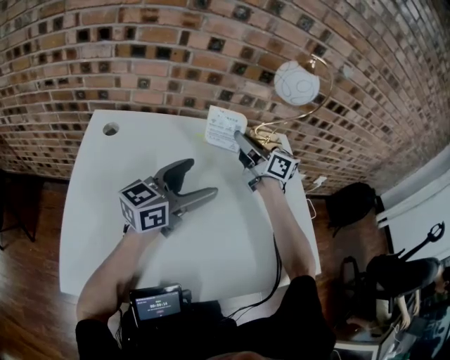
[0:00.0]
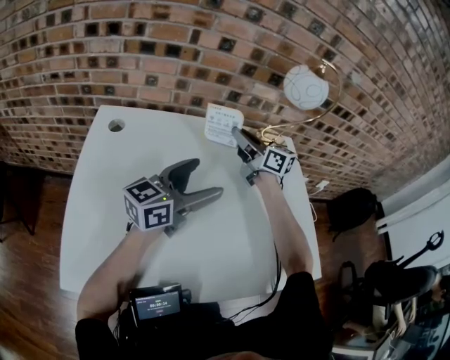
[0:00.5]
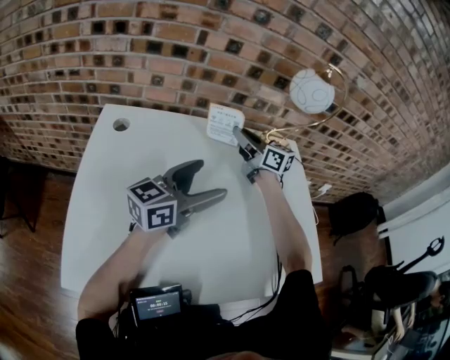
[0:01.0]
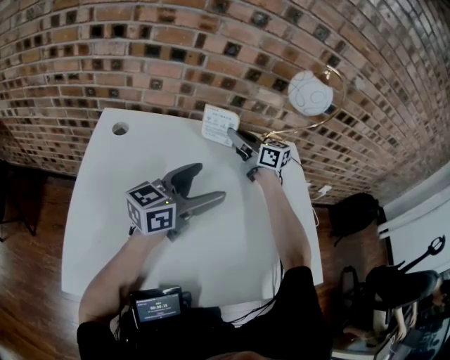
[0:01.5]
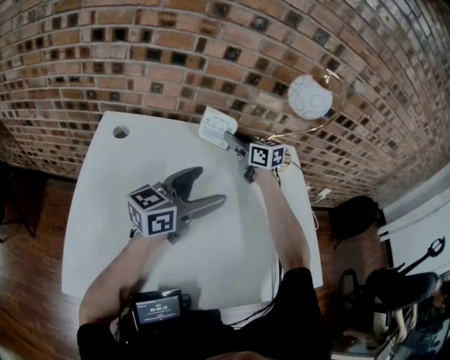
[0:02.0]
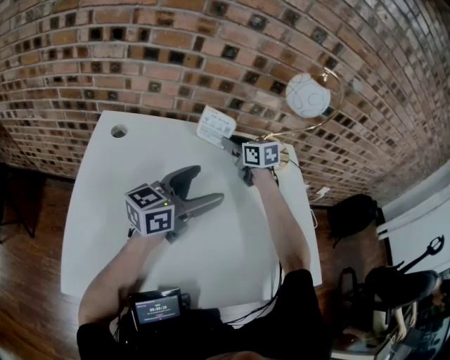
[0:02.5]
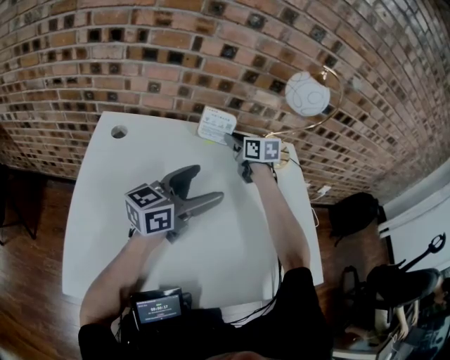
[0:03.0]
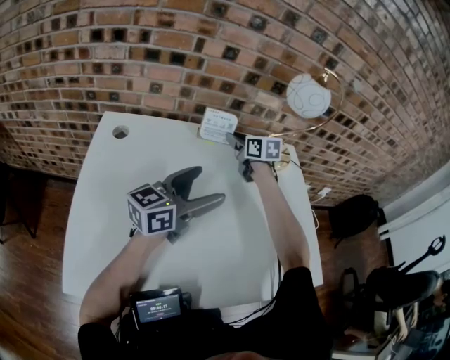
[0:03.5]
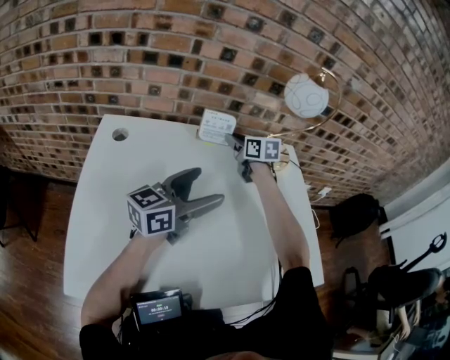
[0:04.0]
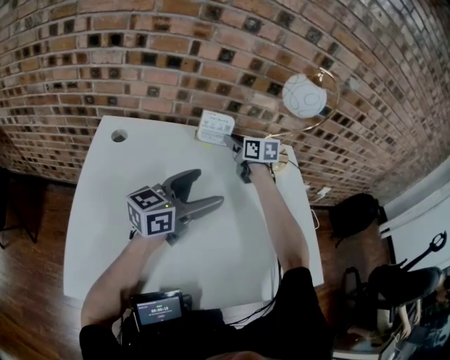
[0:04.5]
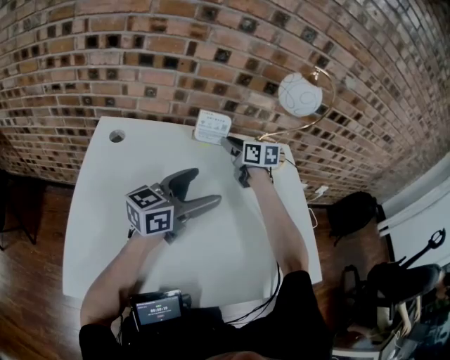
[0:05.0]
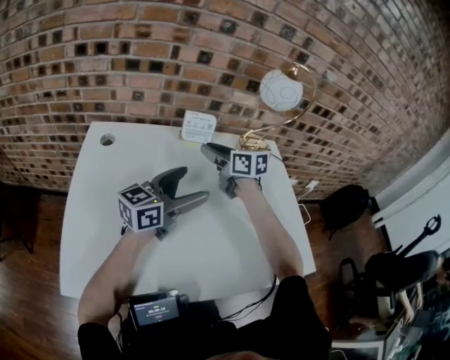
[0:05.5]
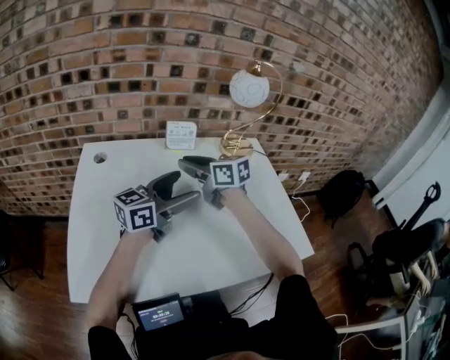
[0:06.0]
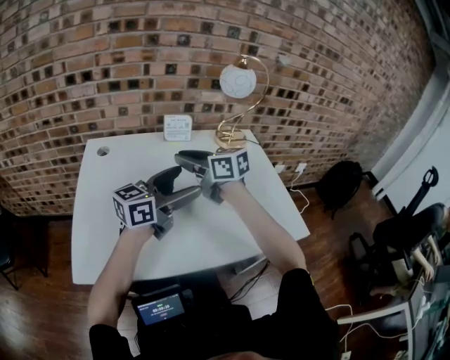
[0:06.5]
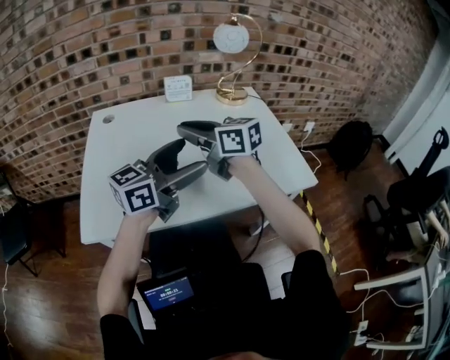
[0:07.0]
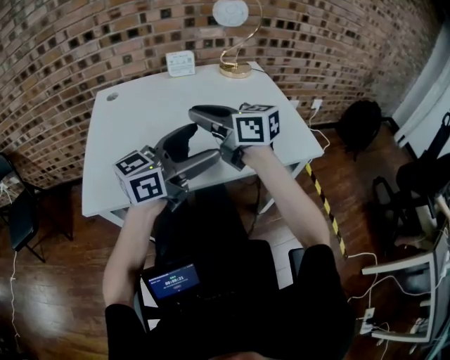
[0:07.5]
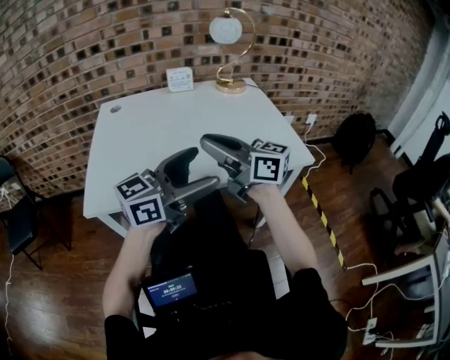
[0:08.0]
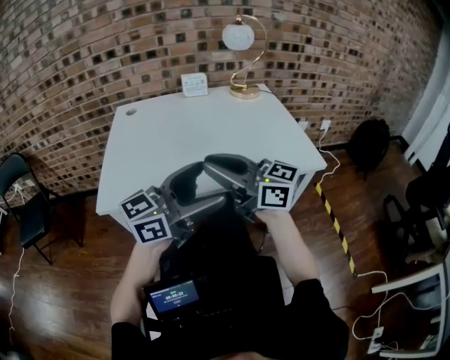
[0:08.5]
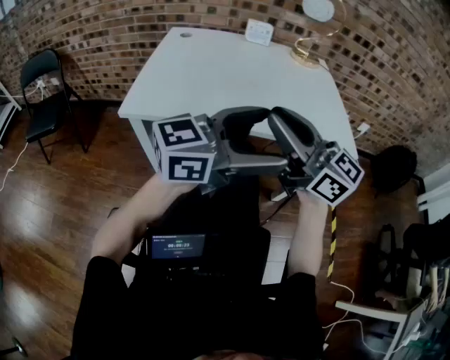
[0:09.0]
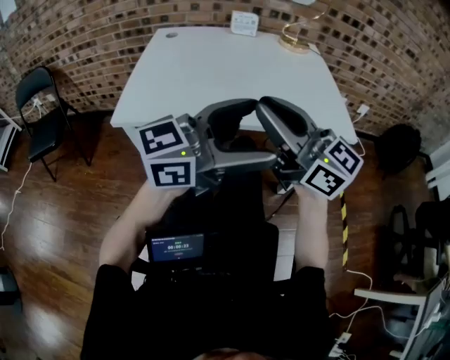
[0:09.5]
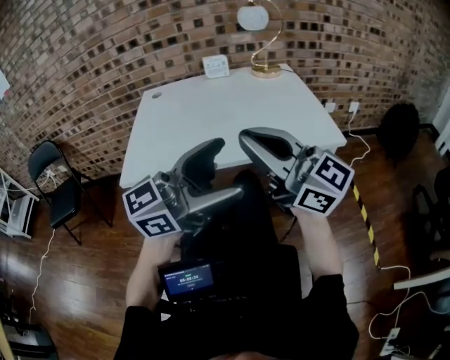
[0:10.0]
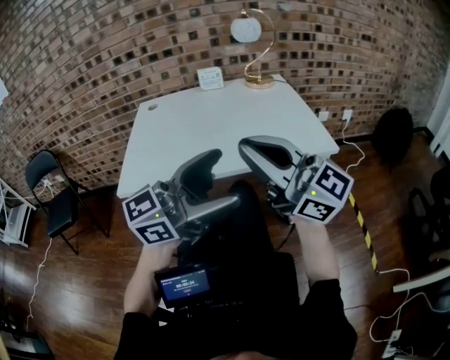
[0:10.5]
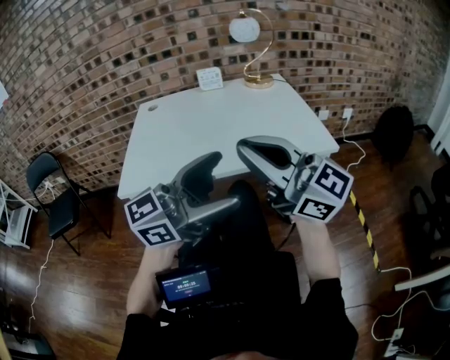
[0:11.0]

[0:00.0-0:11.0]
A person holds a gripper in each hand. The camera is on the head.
0:00.0 to 0:02.0: The right gripper is displaced forward, downward and to the left by some 10 cm, and rotates some 20 degrees.
0:02.0 to 0:03.5: There are only small adjustments of the grippers.
0:03.5 to 0:05.5: The right gripper is displaced backward by approximately 10 cm.
0:05.5 to 0:07.5: The grippers both shift backward by about 30 cm.
0:07.5 to 0:09.0: The left gripper ends up approximately 15 cm from where it was. The right gripper moves roughly 20 cm, and rotates roughly 20 degrees.
0:09.0 to 0:11.0: The right gripper ends up roughly 10 cm from where it was.

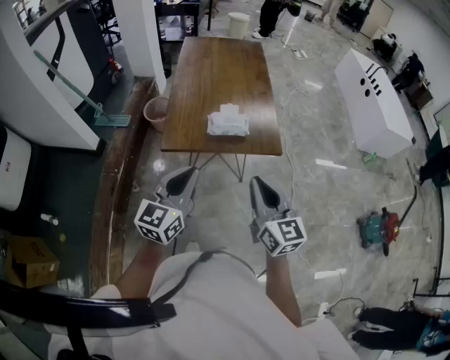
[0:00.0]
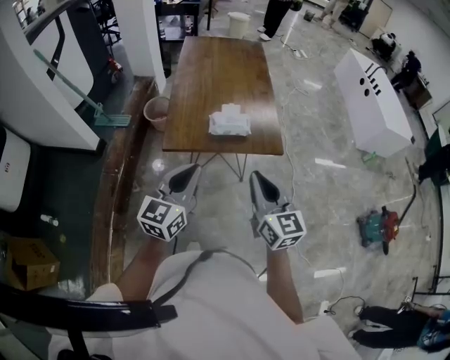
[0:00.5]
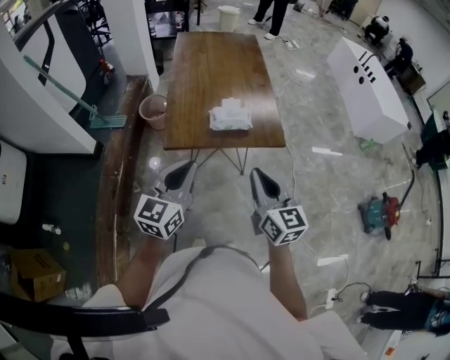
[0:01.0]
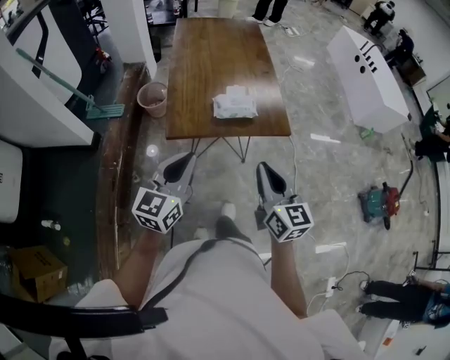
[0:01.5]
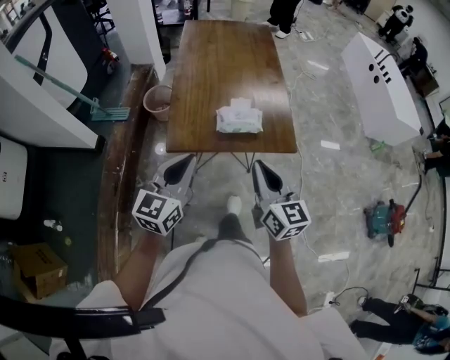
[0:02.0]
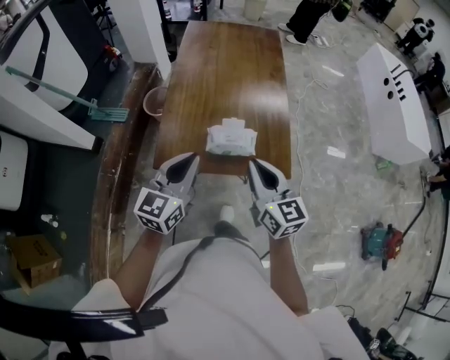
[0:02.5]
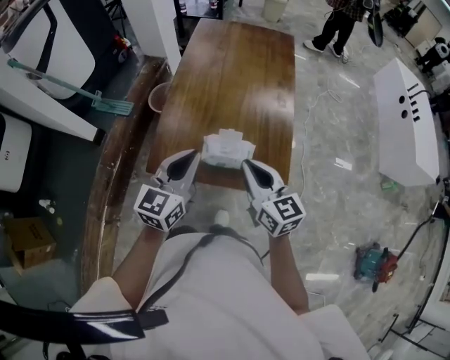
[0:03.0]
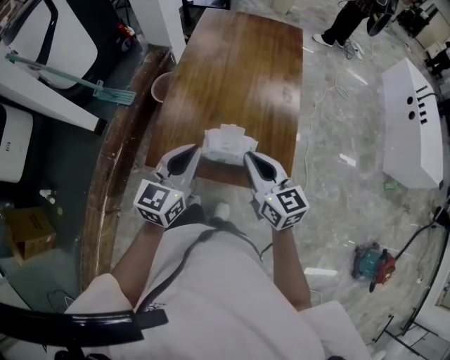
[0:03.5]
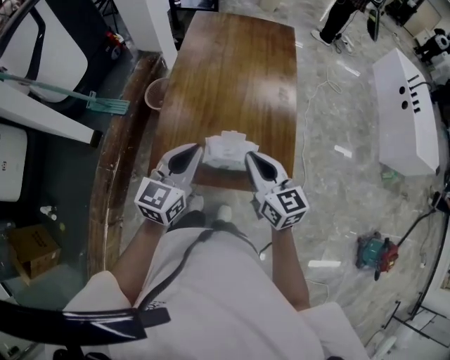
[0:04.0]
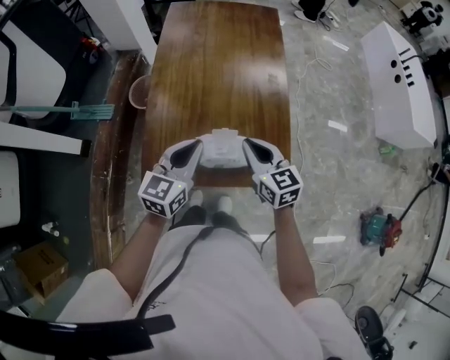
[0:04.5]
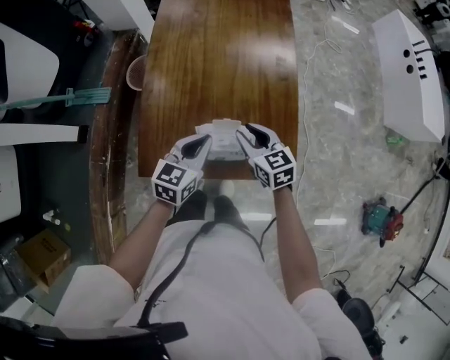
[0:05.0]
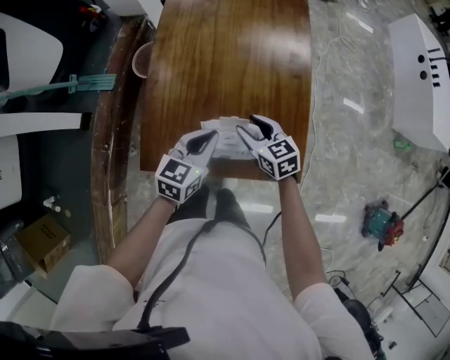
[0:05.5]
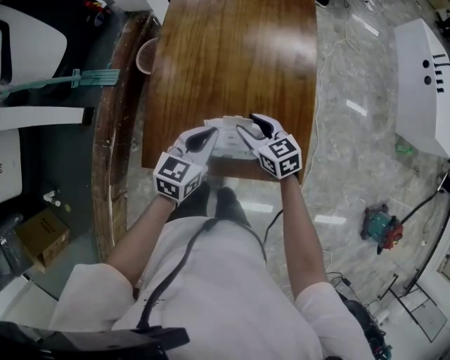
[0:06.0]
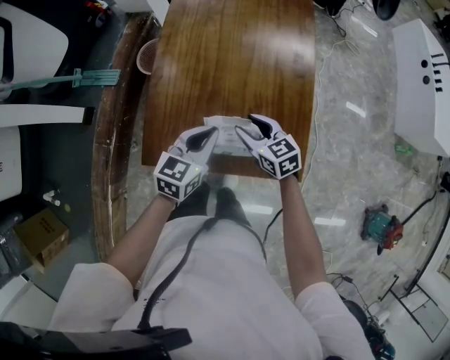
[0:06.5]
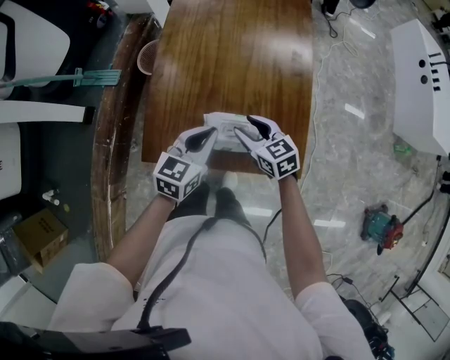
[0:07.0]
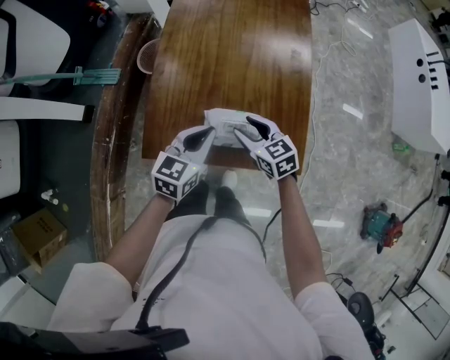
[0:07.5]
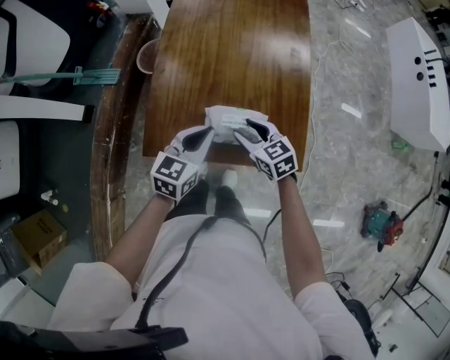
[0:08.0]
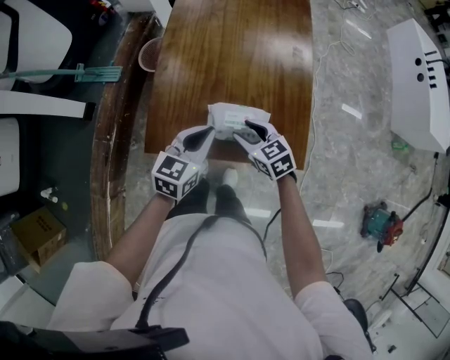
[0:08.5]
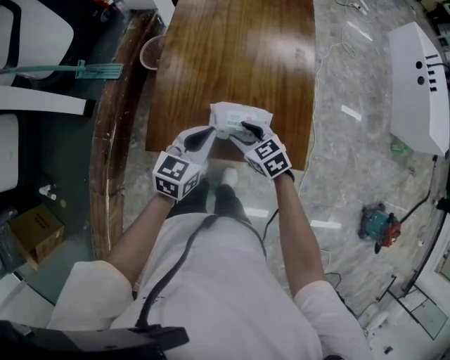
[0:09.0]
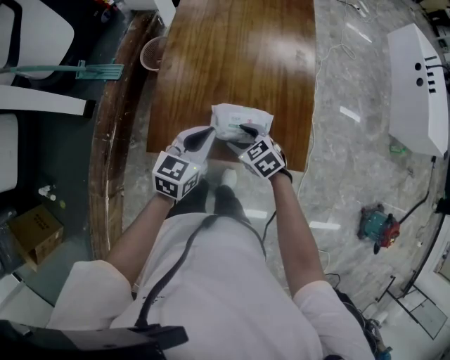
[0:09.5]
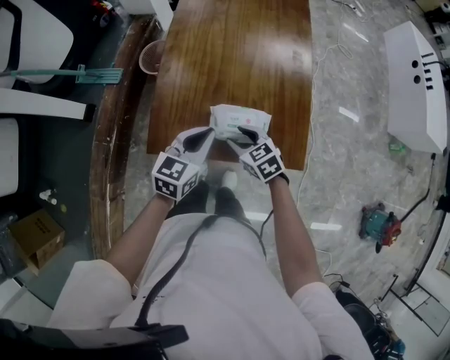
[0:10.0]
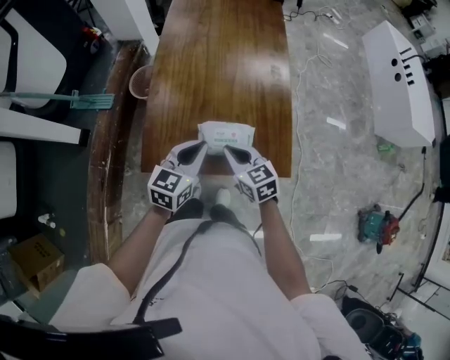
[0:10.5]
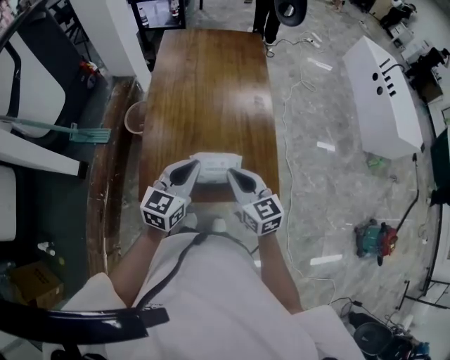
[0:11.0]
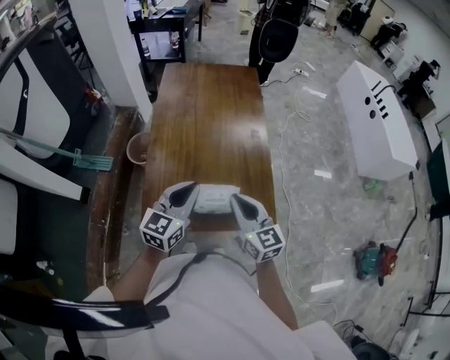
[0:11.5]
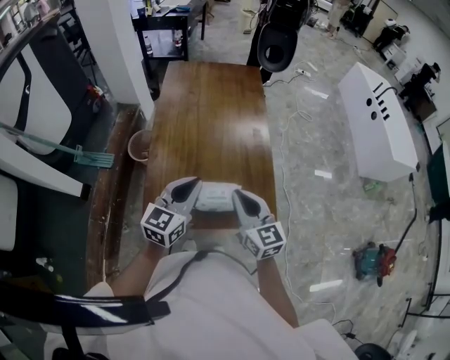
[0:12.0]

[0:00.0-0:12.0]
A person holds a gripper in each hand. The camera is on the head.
0:00.0 to 0:02.0: The grippers both shift forward and to the left by roughly 10 cm.
0:02.0 to 0:04.0: The left gripper moves forward and to the right, about 25 cm. The right gripper is displaced forward by about 25 cm.
0:04.0 to 0:06.0: Both grippers travel together downward and forward, some 20 cm. The right gripper swivels some 20 degrees, and opens its fingers.
0:06.0 to 0:08.0: Both grippers travel together backward, approximately 5 cm.
0:08.0 to 0:10.0: The right gripper changes place by about 5 cm.
0:10.0 to 0:12.0: The right gripper goes approximately 25 cm upward, tips its fingers upward by some 30 degrees, and closes its fingers; the left gripper is displaced upward by roughly 15 cm.

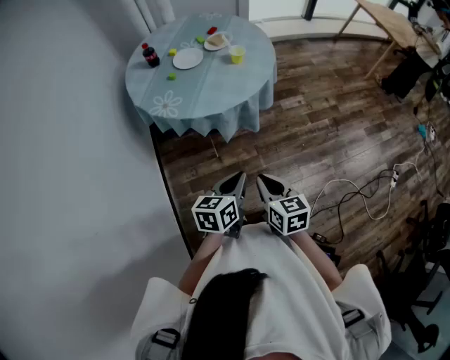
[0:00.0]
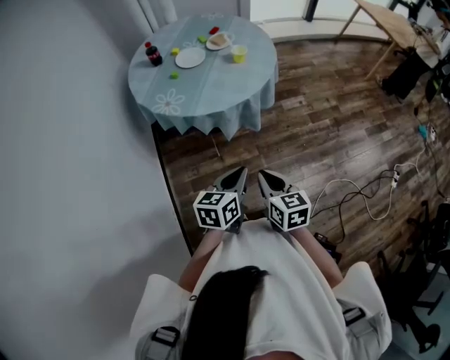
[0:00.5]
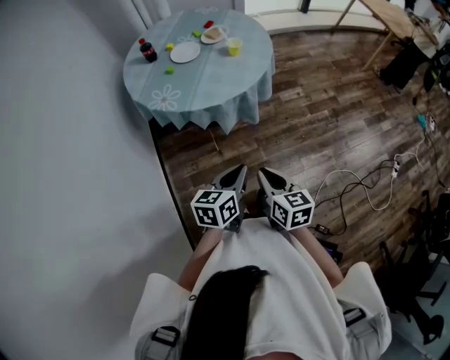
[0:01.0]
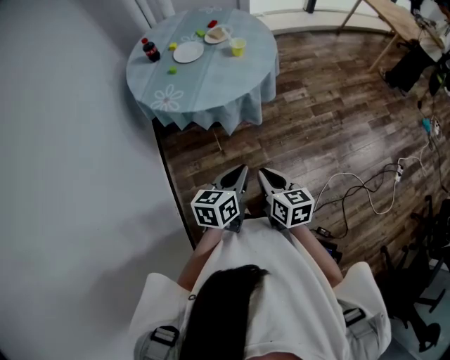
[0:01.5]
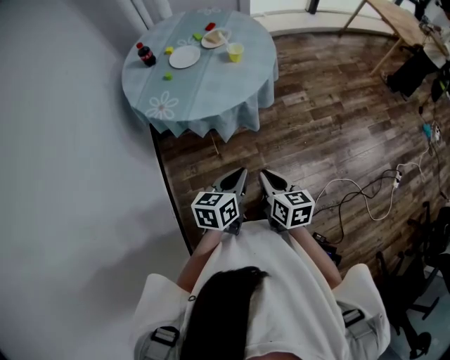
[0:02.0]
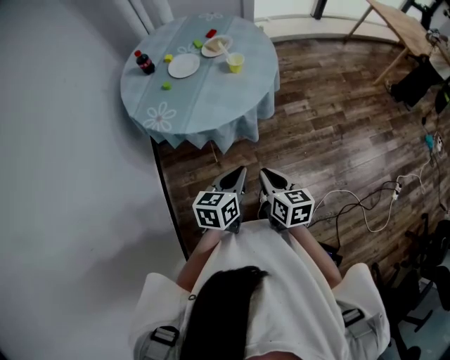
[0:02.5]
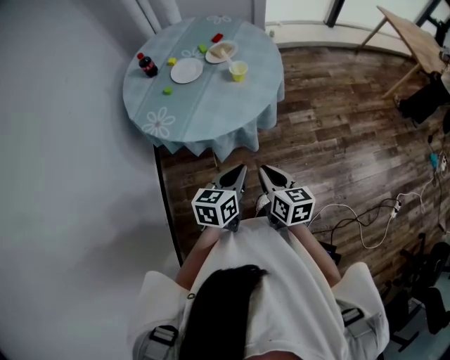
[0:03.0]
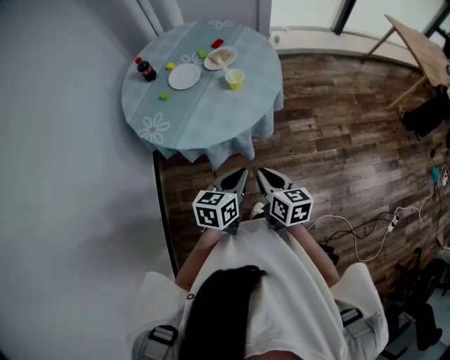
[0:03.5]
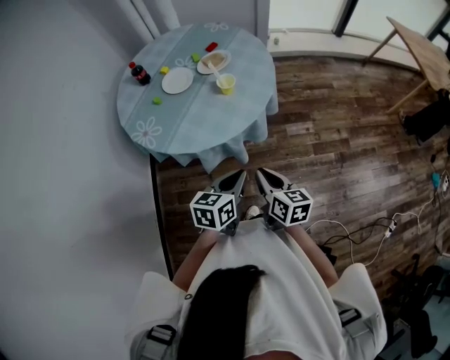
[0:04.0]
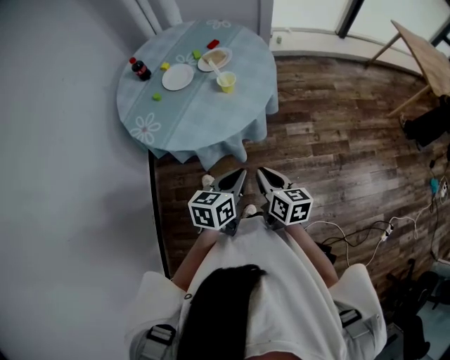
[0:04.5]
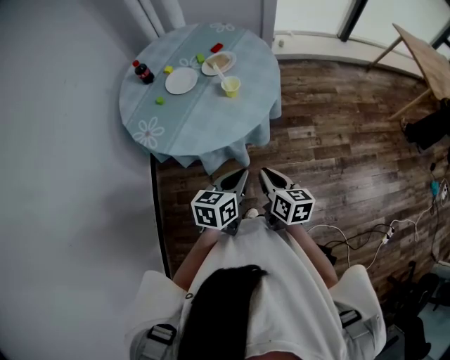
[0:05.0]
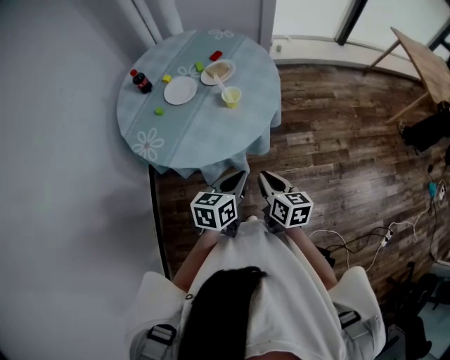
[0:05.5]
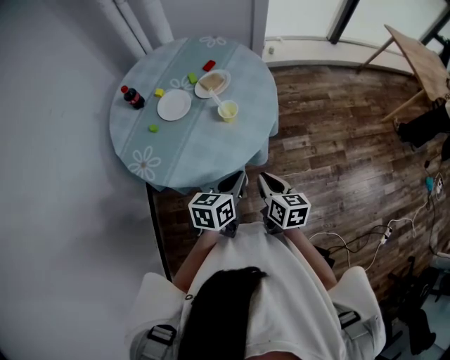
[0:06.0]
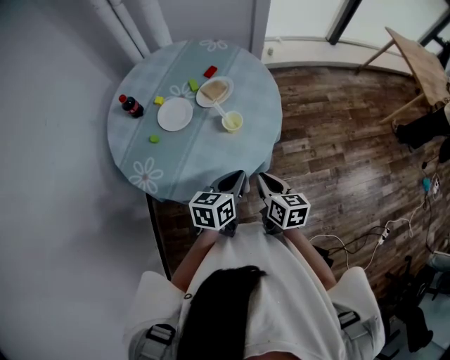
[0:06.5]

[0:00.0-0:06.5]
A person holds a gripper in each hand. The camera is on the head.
0:00.0 to 0:02.0: The right gripper moves roughly 5 cm.
0:02.0 to 0:04.5: Both grippers travel together forward and to the right, some 20 cm.
0:04.5 to 0:06.5: The grippers both shift forward by roughly 15 cm.
